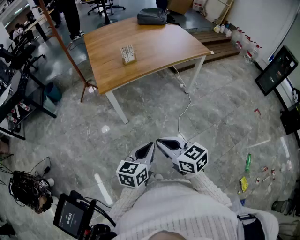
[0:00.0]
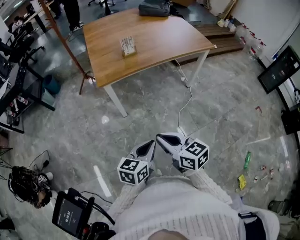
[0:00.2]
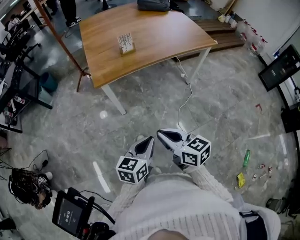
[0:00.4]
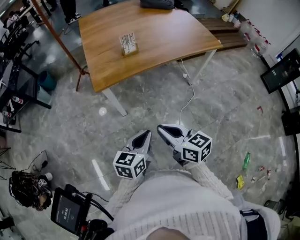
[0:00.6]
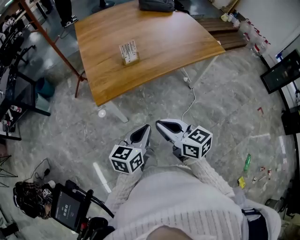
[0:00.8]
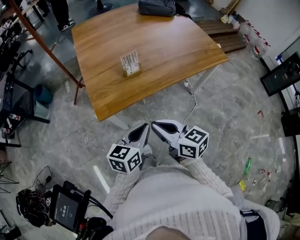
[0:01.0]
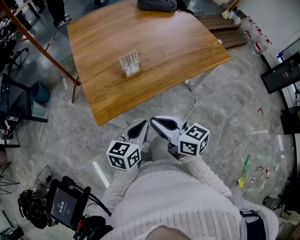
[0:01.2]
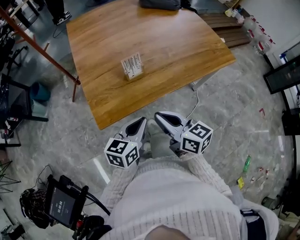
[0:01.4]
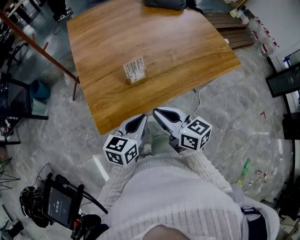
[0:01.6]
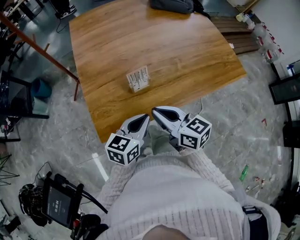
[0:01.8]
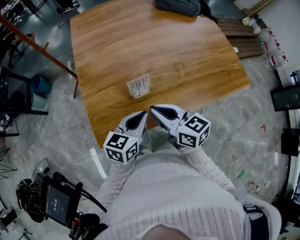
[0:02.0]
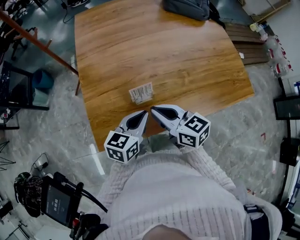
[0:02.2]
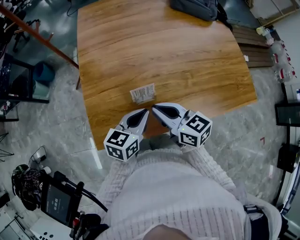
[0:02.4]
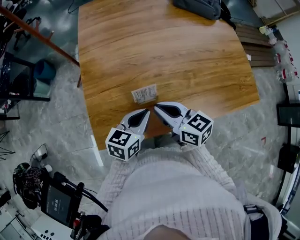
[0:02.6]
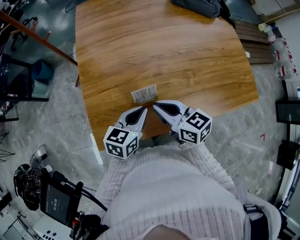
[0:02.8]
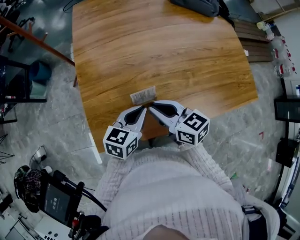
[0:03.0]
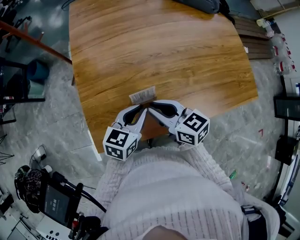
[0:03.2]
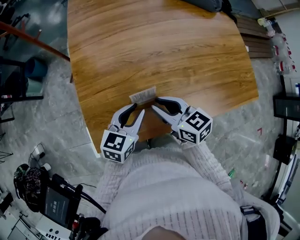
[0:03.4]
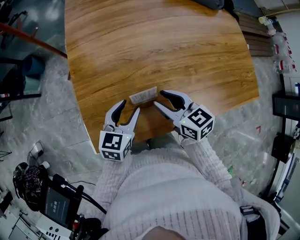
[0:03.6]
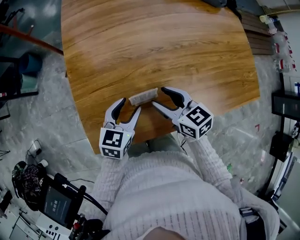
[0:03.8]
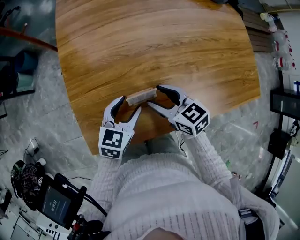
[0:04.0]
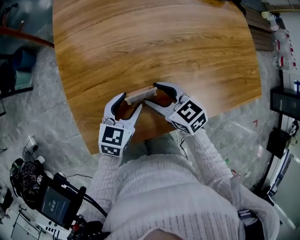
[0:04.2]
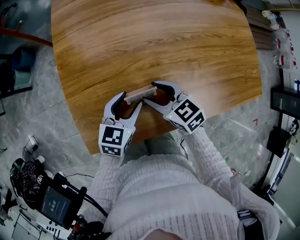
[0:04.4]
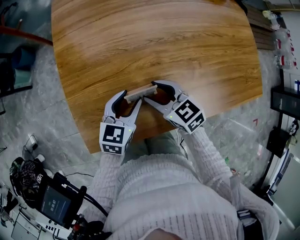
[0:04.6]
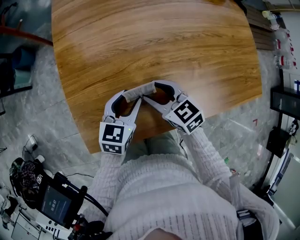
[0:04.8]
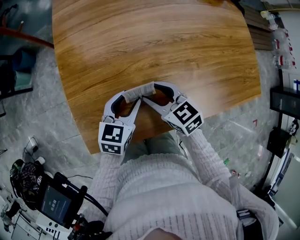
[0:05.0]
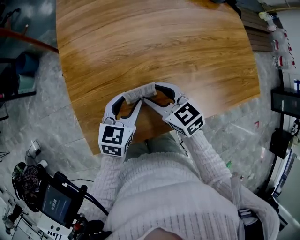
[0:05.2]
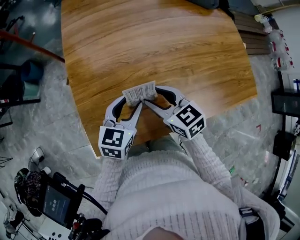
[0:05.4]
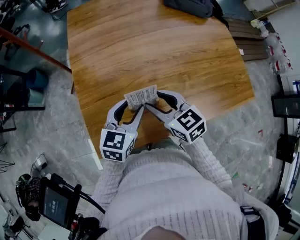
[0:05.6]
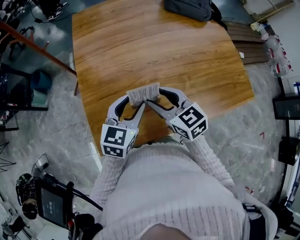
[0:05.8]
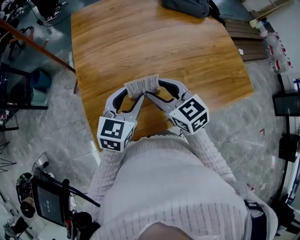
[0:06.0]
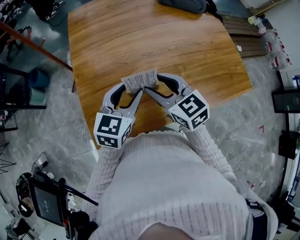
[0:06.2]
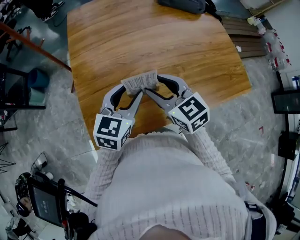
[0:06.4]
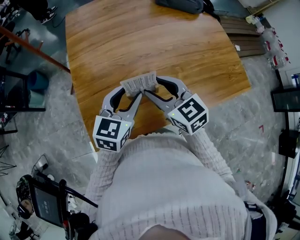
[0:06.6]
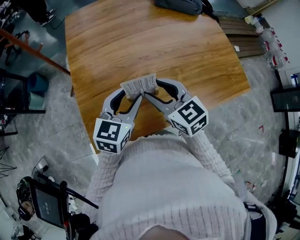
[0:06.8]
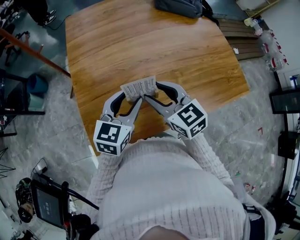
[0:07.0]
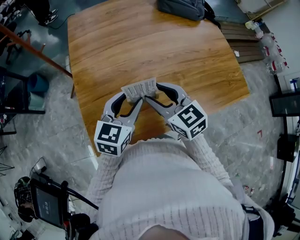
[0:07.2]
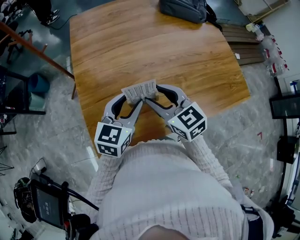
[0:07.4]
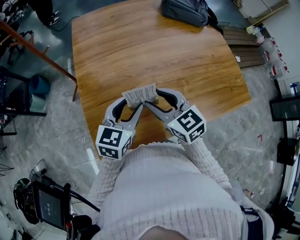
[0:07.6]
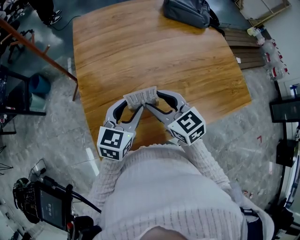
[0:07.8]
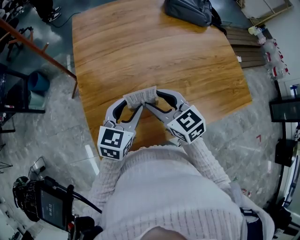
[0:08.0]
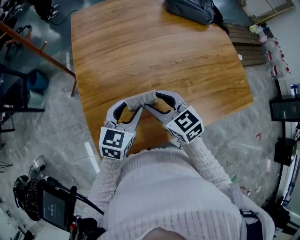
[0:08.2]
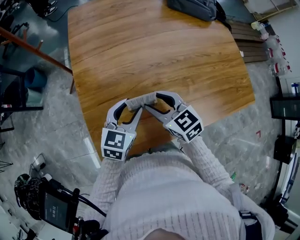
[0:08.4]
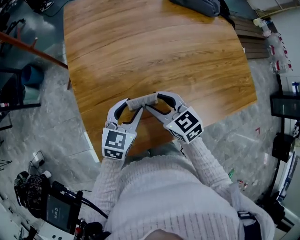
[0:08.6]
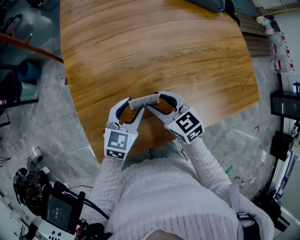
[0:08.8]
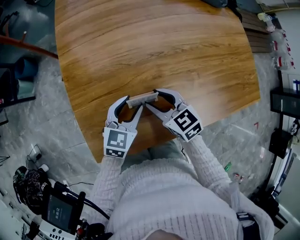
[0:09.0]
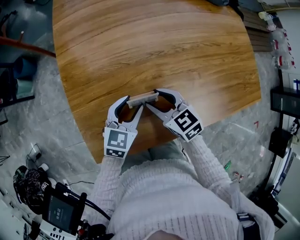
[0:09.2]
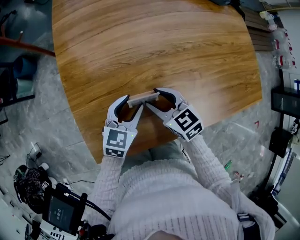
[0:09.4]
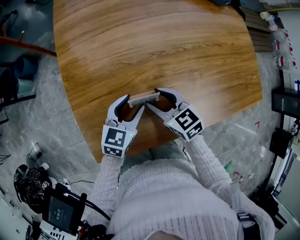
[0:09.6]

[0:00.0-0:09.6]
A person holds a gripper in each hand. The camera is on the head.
0:00.0 to 0:01.6: The pair of grippers is taken forward, some 40 cm.
0:01.6 to 0:03.2: Both grippers move forward, about 15 cm.
0:03.2 to 0:04.8: The right gripper shifts approximately 5 cm downward, and opens up, while the left gripper moves approximately 5 cm, and opens.
0:04.8 to 0:06.4: Both grippers move upward, about 15 cm.
0:06.4 to 0:08.0: There are only small adjustments of the grippers.
0:08.0 to 0:09.6: Both grippers travel together downward, some 10 cm.

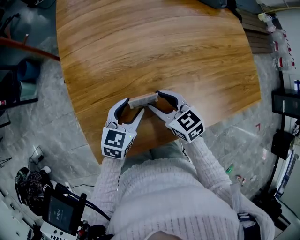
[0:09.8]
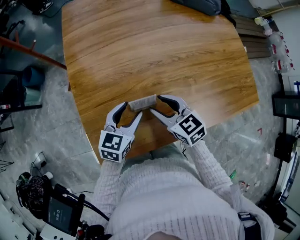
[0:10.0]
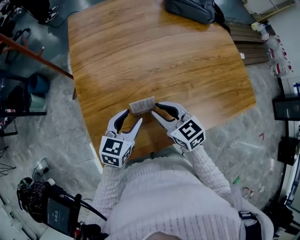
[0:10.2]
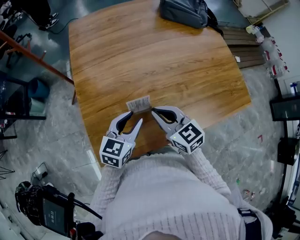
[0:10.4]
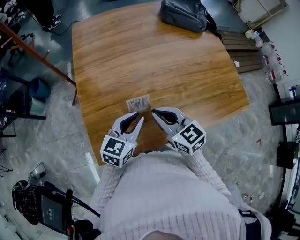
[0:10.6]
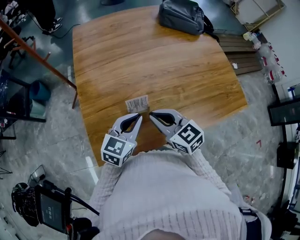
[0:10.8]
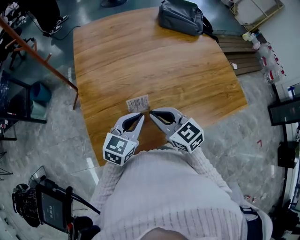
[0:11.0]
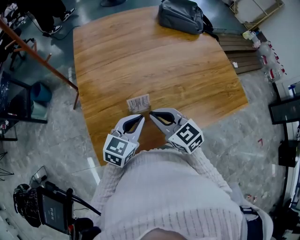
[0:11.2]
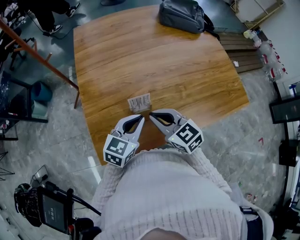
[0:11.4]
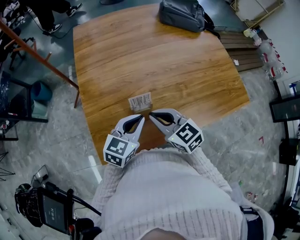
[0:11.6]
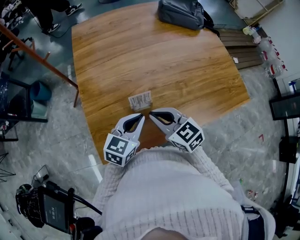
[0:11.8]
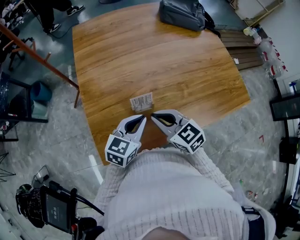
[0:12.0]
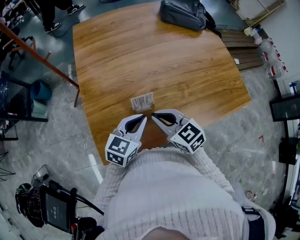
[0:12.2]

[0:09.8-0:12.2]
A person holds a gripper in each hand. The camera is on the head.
0:09.8 to 0:11.0: Both grippers move upward and backward, some 10 cm. The right gripper closes its fingers. Meanwhile the left gripper closes.
0:11.0 to 0:12.2: There are only small adjustments of the grippers.

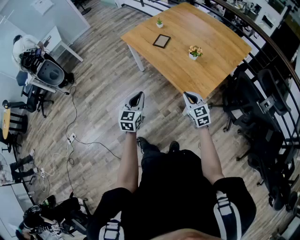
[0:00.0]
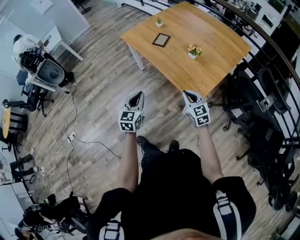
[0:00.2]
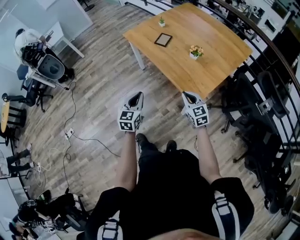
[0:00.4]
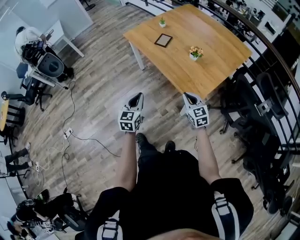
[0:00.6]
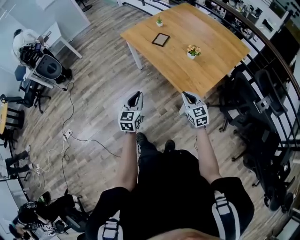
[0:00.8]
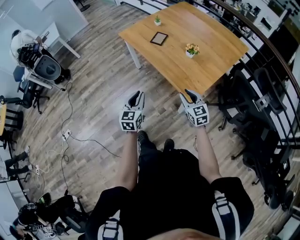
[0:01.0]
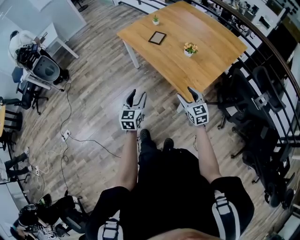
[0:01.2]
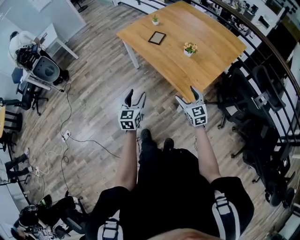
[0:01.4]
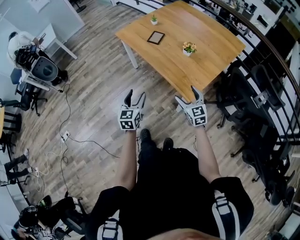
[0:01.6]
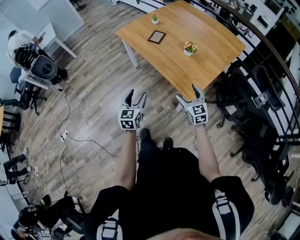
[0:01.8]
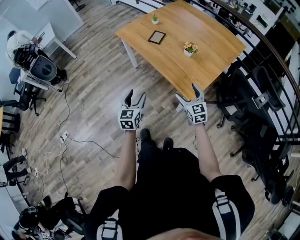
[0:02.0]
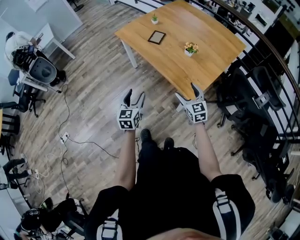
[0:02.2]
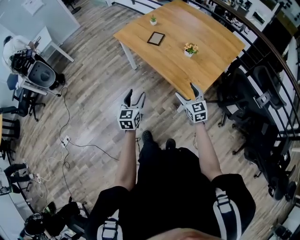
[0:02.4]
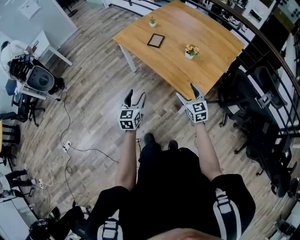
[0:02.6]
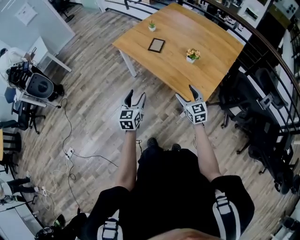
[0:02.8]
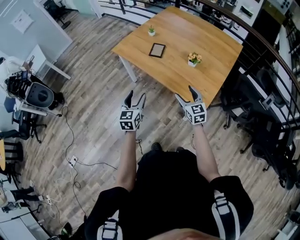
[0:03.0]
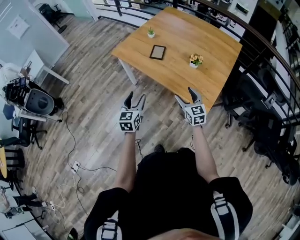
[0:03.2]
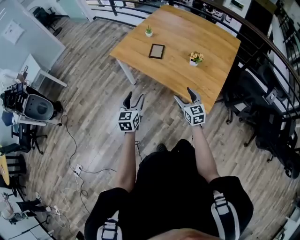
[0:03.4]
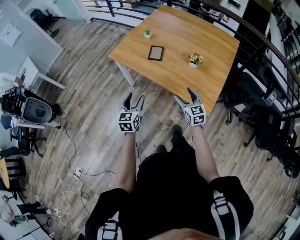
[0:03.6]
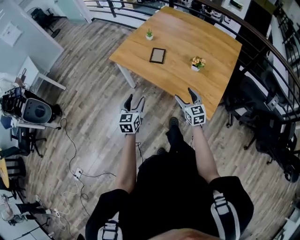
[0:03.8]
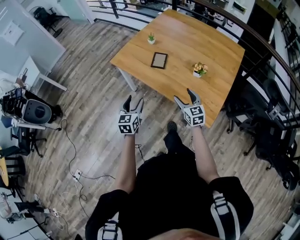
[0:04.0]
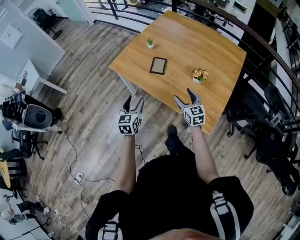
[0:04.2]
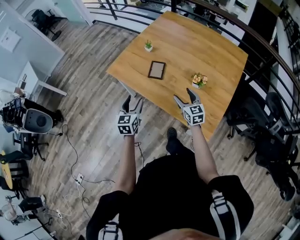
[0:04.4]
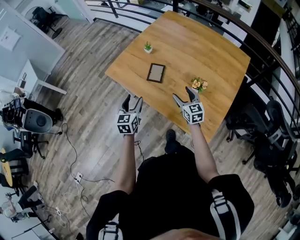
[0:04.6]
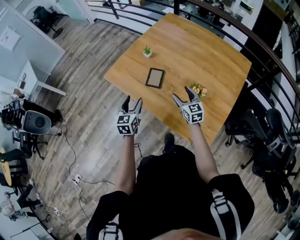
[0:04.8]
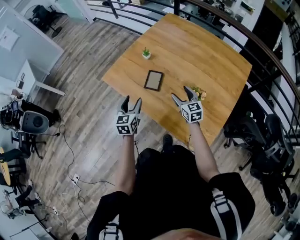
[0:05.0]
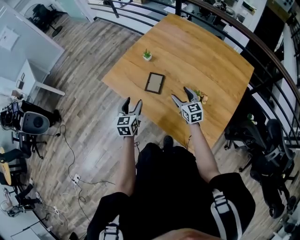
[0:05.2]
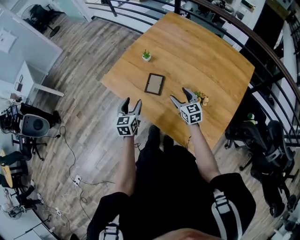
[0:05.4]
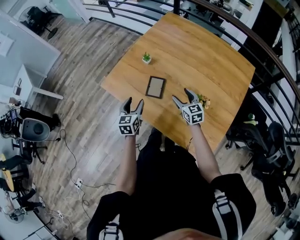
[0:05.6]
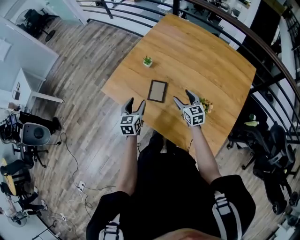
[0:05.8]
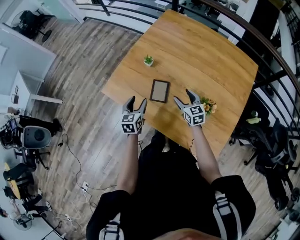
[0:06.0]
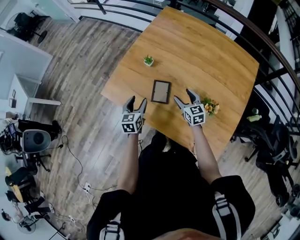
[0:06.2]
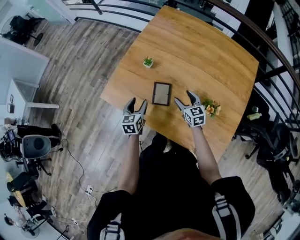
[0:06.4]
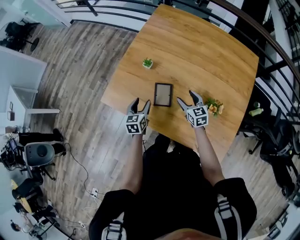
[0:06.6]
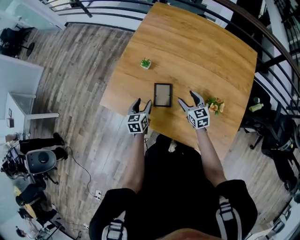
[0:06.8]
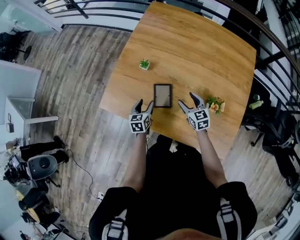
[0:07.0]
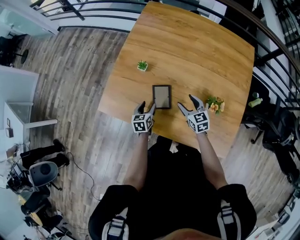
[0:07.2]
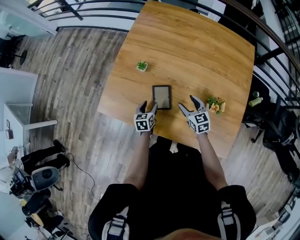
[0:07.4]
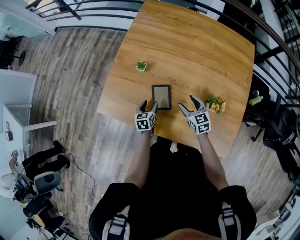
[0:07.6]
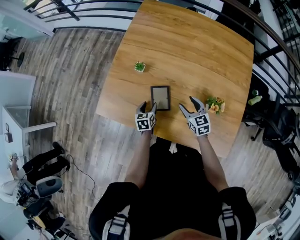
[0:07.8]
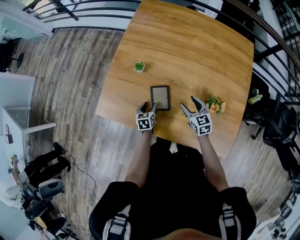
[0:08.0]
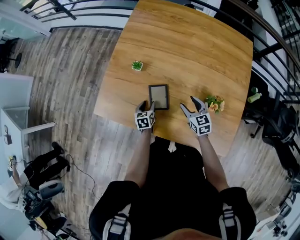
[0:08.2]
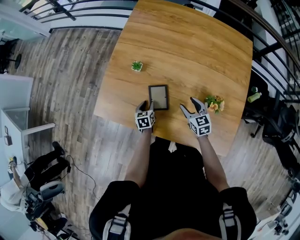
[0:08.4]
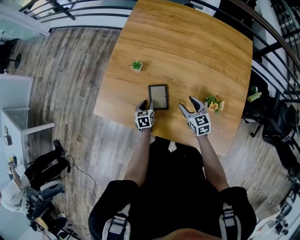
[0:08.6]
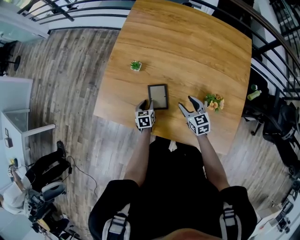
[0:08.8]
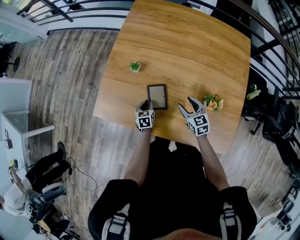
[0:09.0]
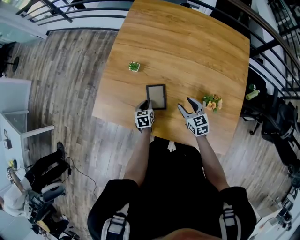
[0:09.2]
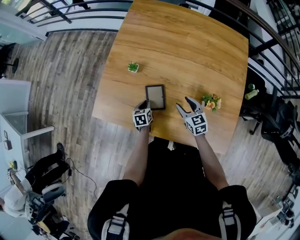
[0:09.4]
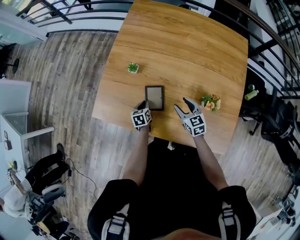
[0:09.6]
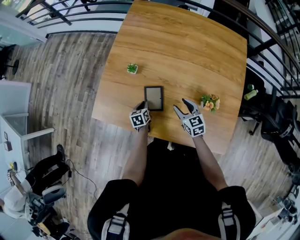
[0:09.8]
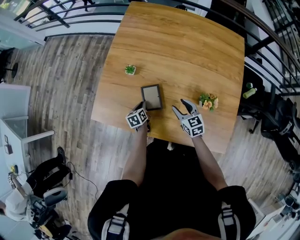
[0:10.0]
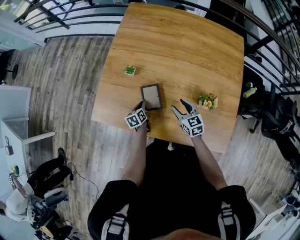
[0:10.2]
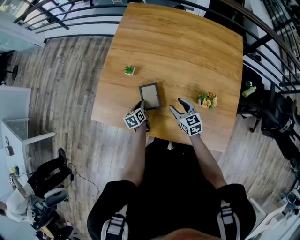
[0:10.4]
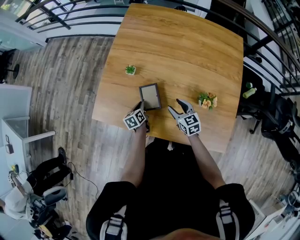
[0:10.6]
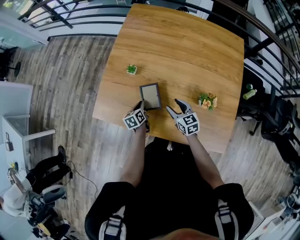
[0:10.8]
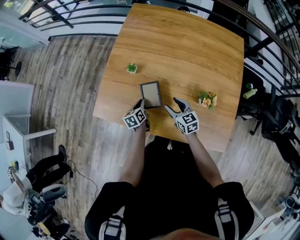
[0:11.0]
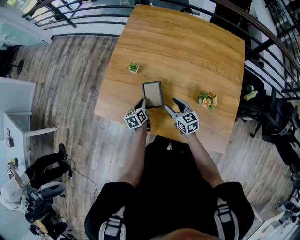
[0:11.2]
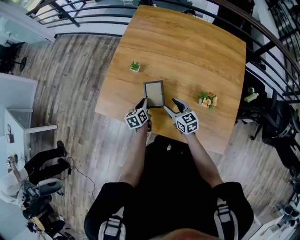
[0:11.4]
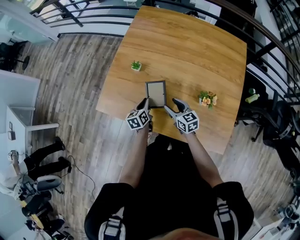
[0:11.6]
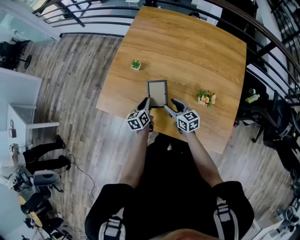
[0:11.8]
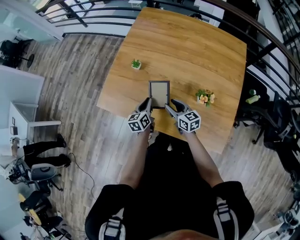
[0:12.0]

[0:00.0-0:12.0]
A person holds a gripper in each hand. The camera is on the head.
0:00.0 to 0:01.6: The right gripper opens up, while the left gripper opens.
0:01.6 to 0:03.0: The two grippers go roughly 15 cm forward and to the left.
0:03.0 to 0:04.4: The two grippers go about 20 cm forward.
0:04.4 to 0:06.0: Both grippers move forward, roughly 20 cm.
0:06.0 to 0:07.6: The left gripper is displaced downward and forward by about 20 cm. Meanwhile the right gripper shifts about 5 cm downward.
0:07.6 to 0:09.0: The left gripper closes.
0:09.0 to 0:10.4: The left gripper changes its angle by roughly 20 degrees.
0:10.4 to 0:12.0: The right gripper shifts by some 5 cm, and changes its angle by approximately 20 degrees. Meanwhile the left gripper shifts roughly 15 cm upward and backward.
